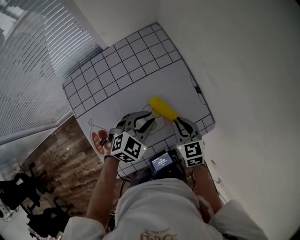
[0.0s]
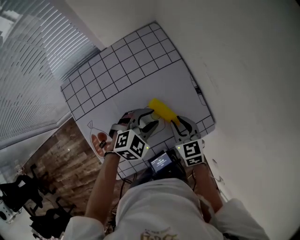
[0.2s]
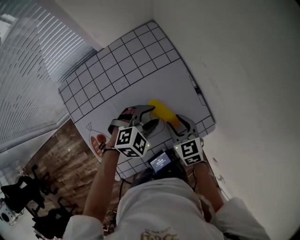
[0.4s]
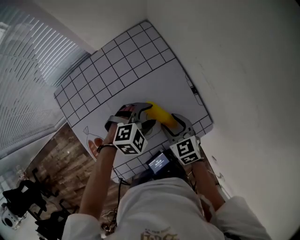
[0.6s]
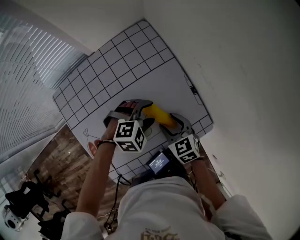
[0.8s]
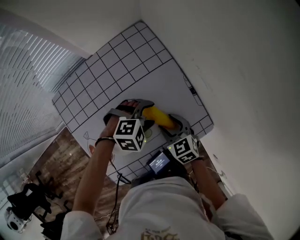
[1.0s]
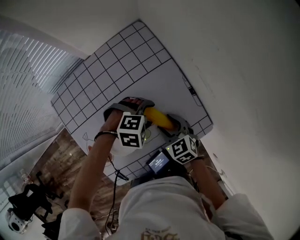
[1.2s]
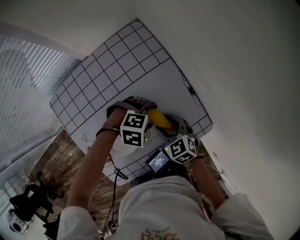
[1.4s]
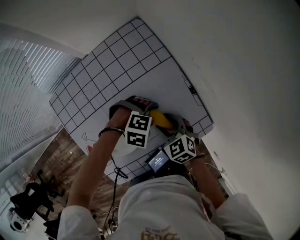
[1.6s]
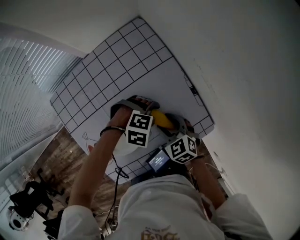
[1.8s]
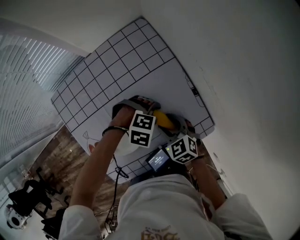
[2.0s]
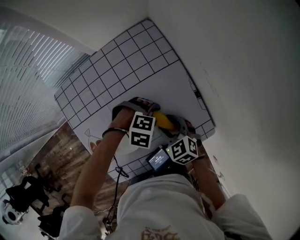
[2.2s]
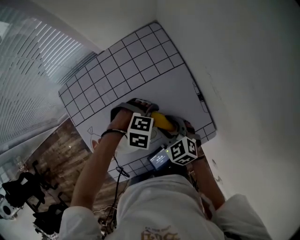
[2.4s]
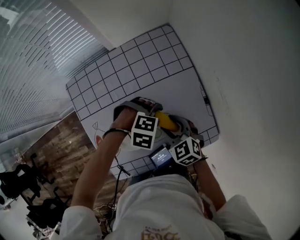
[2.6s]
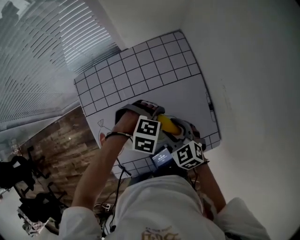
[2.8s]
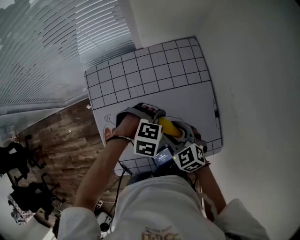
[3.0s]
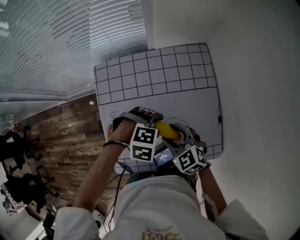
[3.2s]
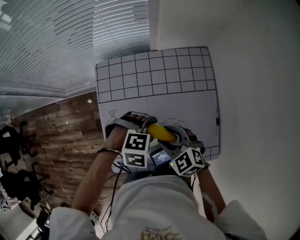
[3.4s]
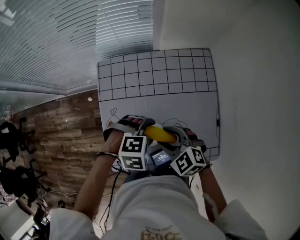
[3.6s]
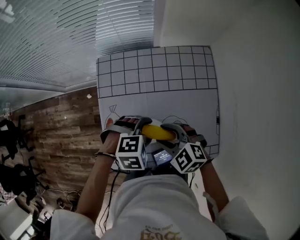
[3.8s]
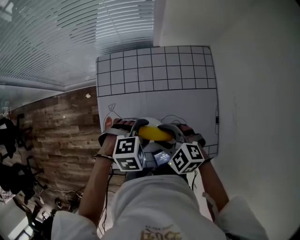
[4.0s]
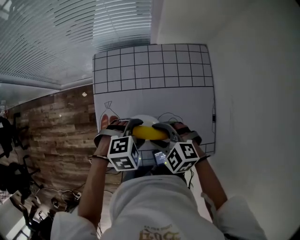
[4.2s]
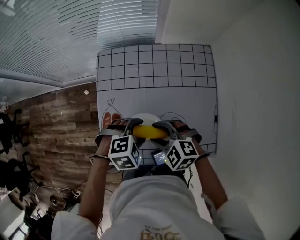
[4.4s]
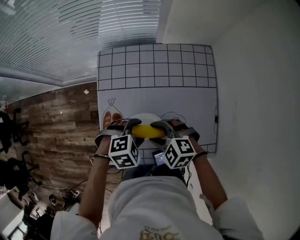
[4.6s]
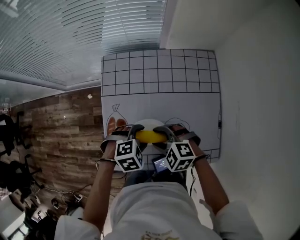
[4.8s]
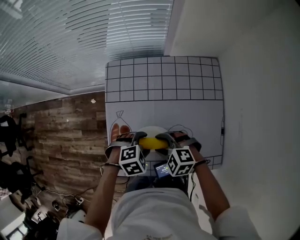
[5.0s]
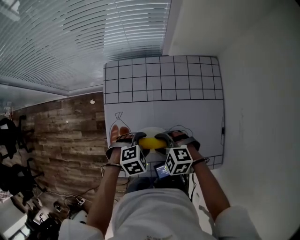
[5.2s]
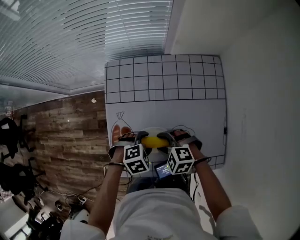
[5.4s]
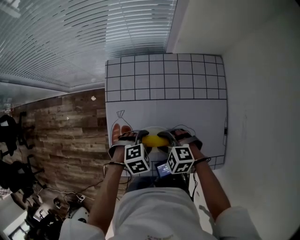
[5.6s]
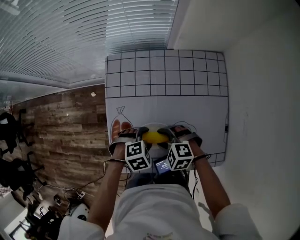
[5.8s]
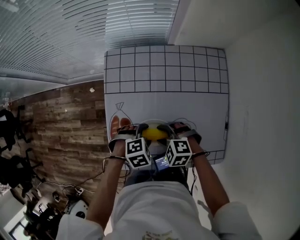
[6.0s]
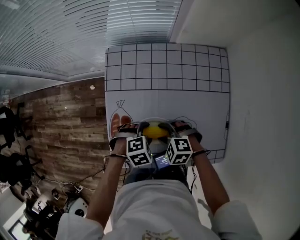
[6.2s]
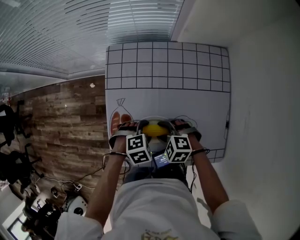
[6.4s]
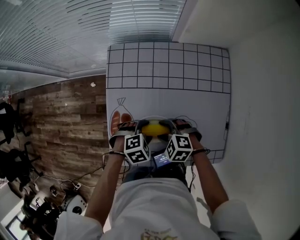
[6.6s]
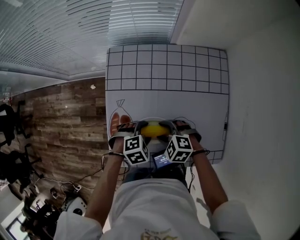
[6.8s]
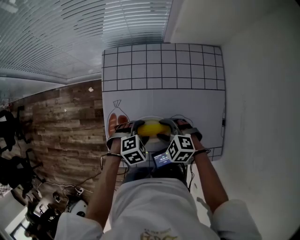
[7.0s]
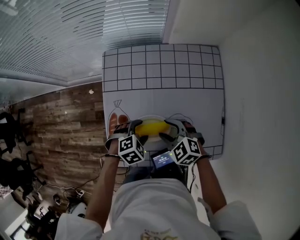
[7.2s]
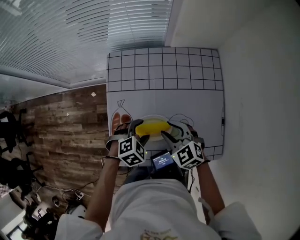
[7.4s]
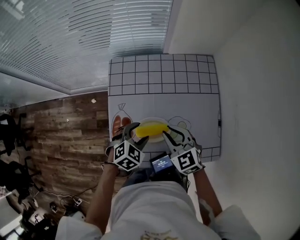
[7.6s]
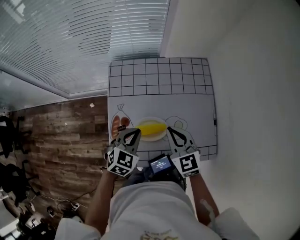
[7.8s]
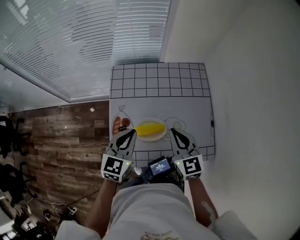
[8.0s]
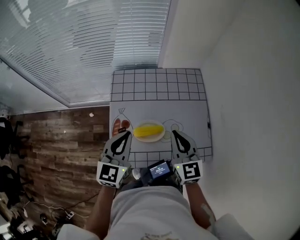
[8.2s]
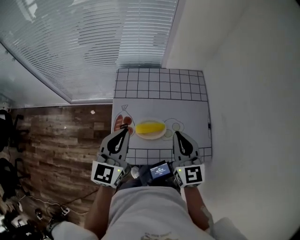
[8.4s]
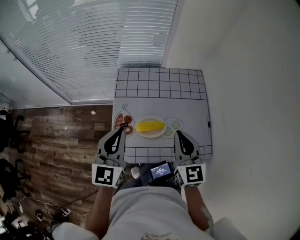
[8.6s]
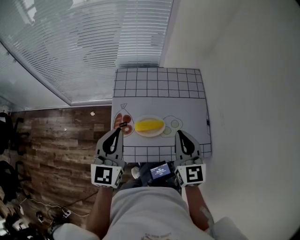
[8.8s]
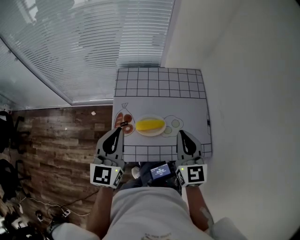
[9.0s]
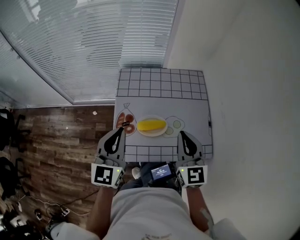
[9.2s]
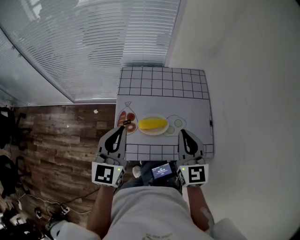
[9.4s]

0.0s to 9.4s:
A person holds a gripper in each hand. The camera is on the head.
0.0s to 1.6s: The grippers both shift downward by some 5 cm. The right gripper swivels roughly 20 degrees, and opens its fingers. Meanwhile the left gripper turns by roughly 60 degrees, and opens up.
1.6s to 3.2s: The left gripper changes place by approximately 15 cm, and changes its angle by some 30 degrees, while the right gripper shifts by some 15 cm, and swivels roughly 30 degrees.
3.2s to 4.8s: The left gripper shifts by approximately 10 cm, and rotates approximately 30 degrees. Meanwhile the right gripper moves approximately 10 cm, and swivels about 40 degrees.
4.8s to 6.2s: Both grippers move downward, approximately 5 cm.
6.2s to 7.8s: Both grippers travel together upward, approximately 15 cm. The right gripper angles its fingers upward, by approximately 40 degrees, and closes, while the left gripper tilts its fingers some 30 degrees upward, and closes.
7.8s to 9.4s: The right gripper heads upward and backward, covering about 15 cm, and swivels some 20 degrees. Meanwhile the left gripper is displaced upward and to the left by some 20 cm, and points its fingers about 30 degrees further upward.

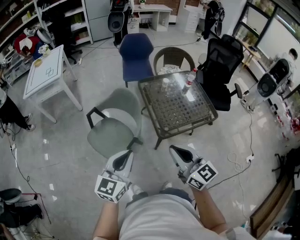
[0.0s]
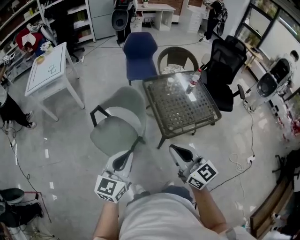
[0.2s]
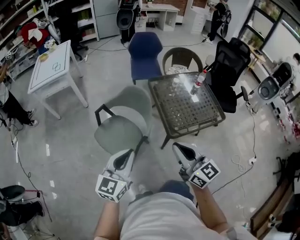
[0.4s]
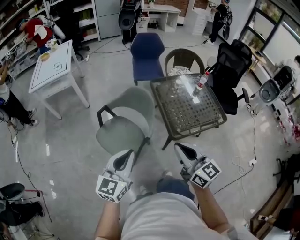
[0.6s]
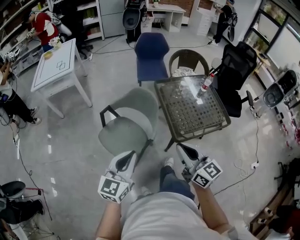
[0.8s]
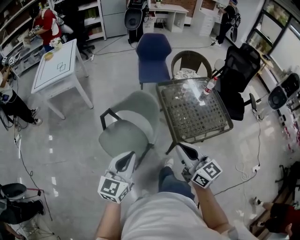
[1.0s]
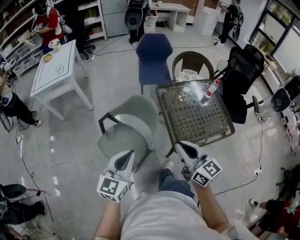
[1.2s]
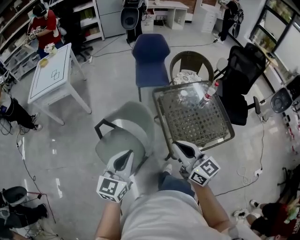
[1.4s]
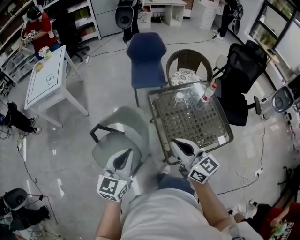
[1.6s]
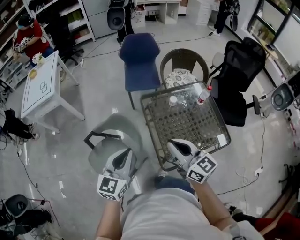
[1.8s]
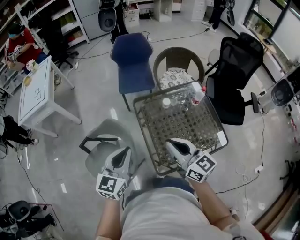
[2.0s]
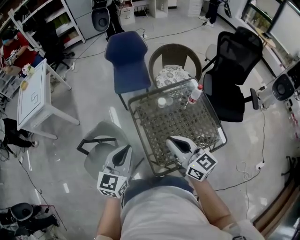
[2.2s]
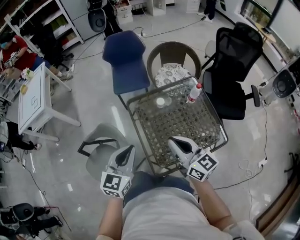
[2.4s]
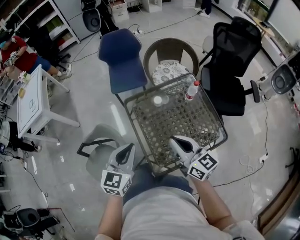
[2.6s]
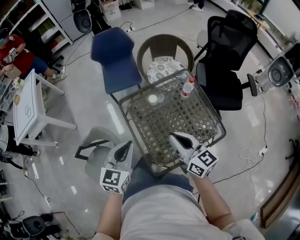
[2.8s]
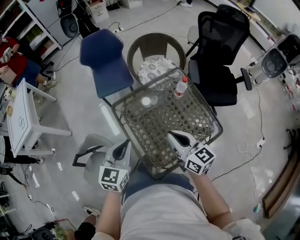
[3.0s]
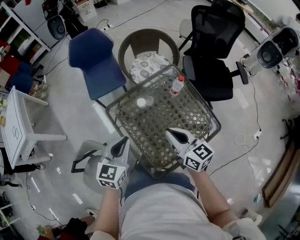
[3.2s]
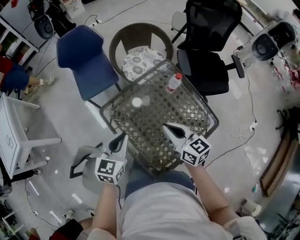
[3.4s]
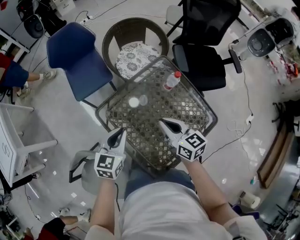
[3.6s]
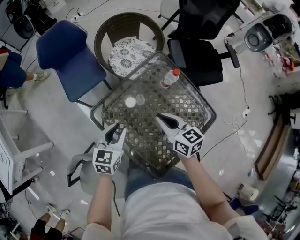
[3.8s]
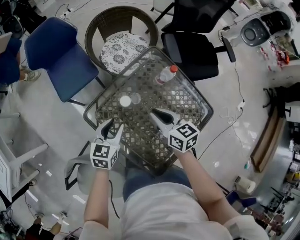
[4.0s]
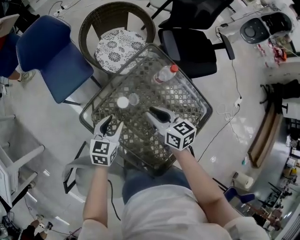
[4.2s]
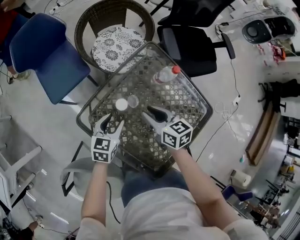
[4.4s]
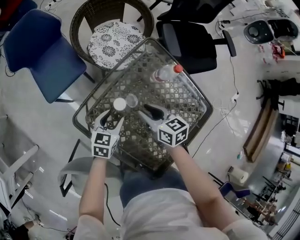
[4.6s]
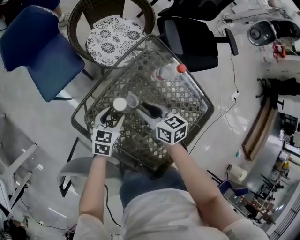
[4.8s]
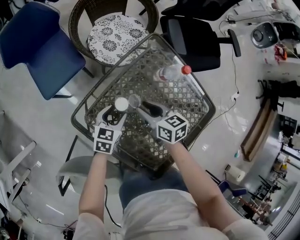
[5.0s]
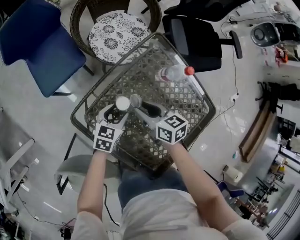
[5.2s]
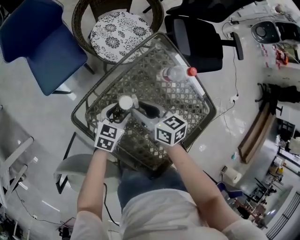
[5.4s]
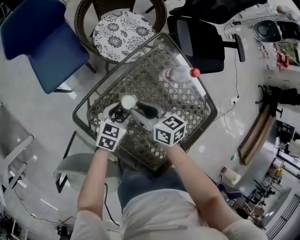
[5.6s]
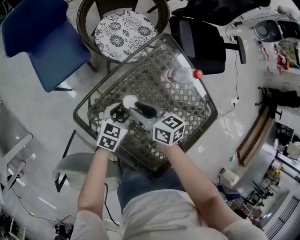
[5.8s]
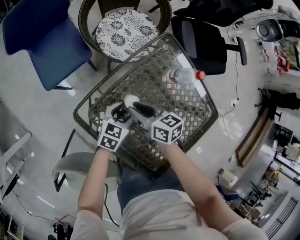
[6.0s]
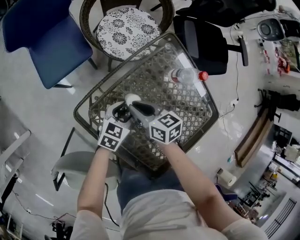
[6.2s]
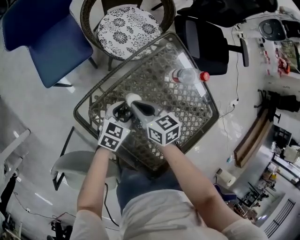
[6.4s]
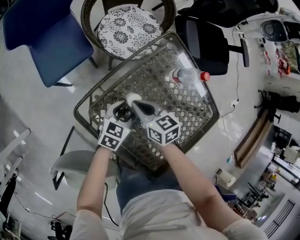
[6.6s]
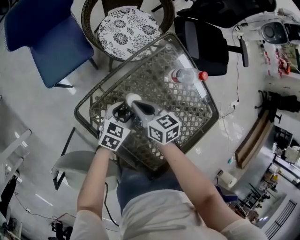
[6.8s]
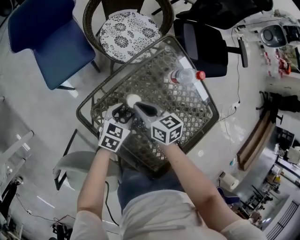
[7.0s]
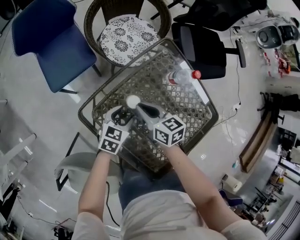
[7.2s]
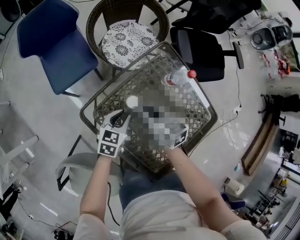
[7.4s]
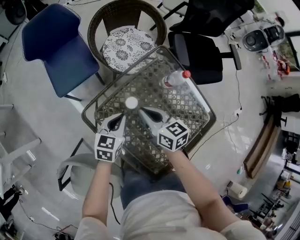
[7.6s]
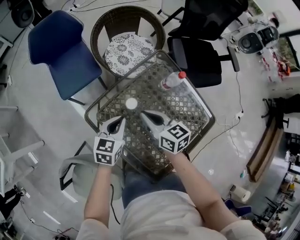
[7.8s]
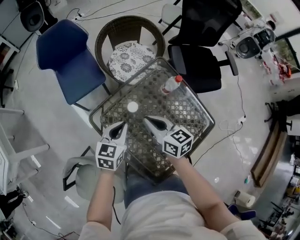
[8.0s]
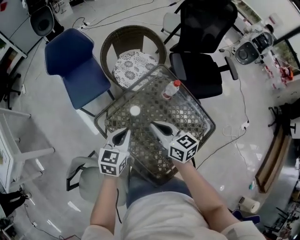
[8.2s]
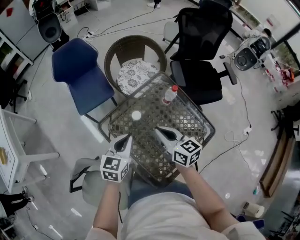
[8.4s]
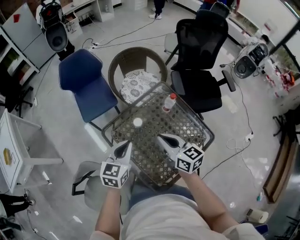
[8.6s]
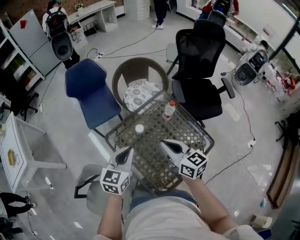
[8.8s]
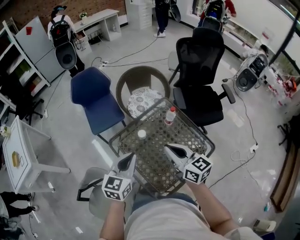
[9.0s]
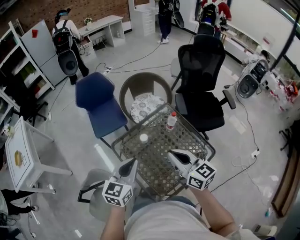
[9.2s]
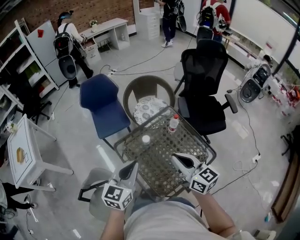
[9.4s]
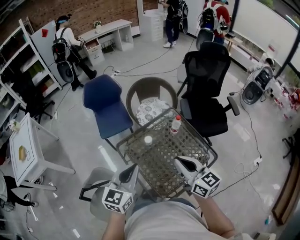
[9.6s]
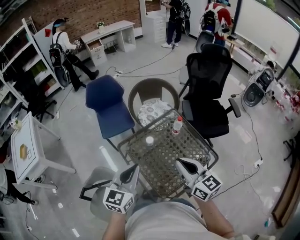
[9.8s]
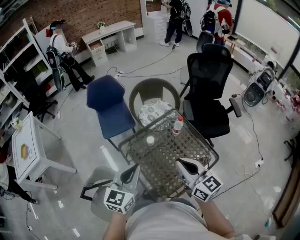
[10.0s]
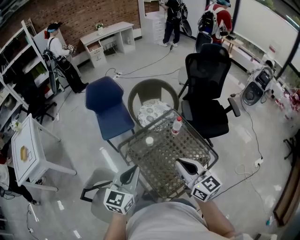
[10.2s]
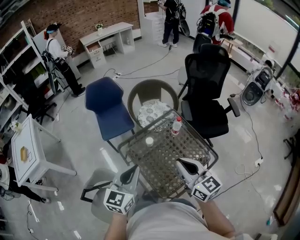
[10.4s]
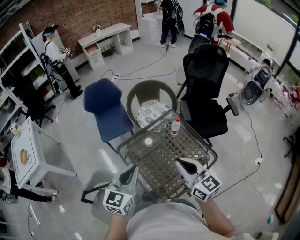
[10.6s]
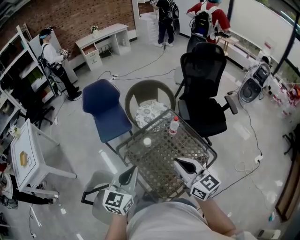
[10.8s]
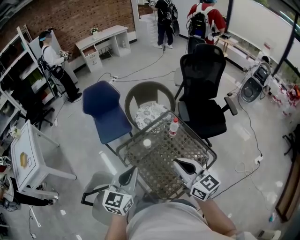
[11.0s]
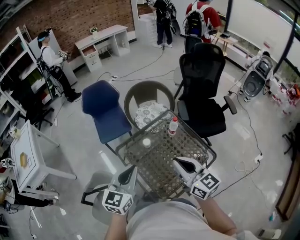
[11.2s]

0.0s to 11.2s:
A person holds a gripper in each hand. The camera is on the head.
0.0s to 1.6s: Both grippers move forward, about 25 cm.
1.6s to 3.2s: The left gripper shifts approximately 35 cm forward, to the right and downward, and rotates some 20 degrees, while the right gripper is displaced to the right, forward and downward by approximately 35 cm, and turns by approximately 20 degrees.
3.2s to 4.8s: The grippers both shift downward and forward by approximately 30 cm. The right gripper swivels roughly 30 degrees, and opens its fingers, while the left gripper rotates about 30 degrees, and opens up.
4.8s to 6.4s: The right gripper shifts approximately 10 cm to the left, and closes up.
6.4s to 8.0s: The right gripper heads upward and backward, covering approximately 20 cm. The left gripper travels upward by some 20 cm, and closes its fingers.
8.0s to 9.6s: Both grippers move upward and backward, roughly 30 cm. The left gripper swivels about 20 degrees. The right gripper rotates roughly 20 degrees.
9.6s to 11.2s: The grippers move only a little.

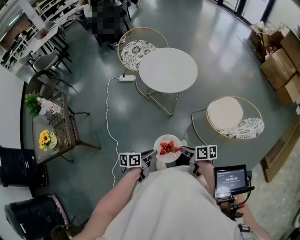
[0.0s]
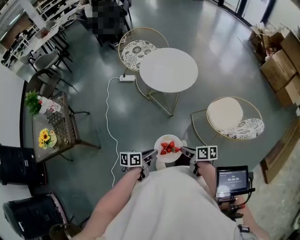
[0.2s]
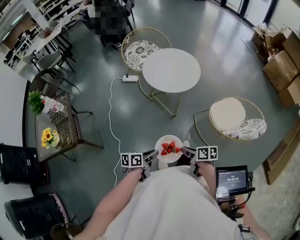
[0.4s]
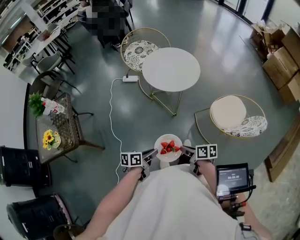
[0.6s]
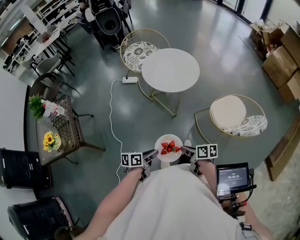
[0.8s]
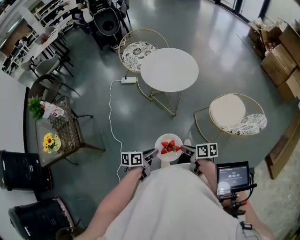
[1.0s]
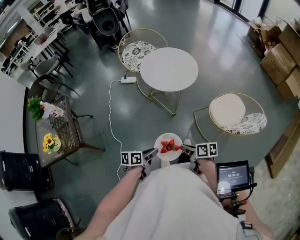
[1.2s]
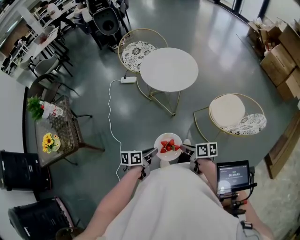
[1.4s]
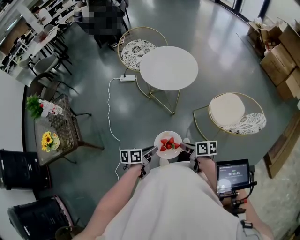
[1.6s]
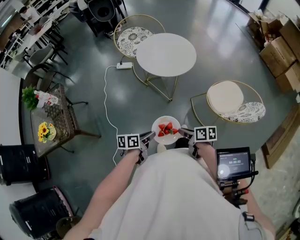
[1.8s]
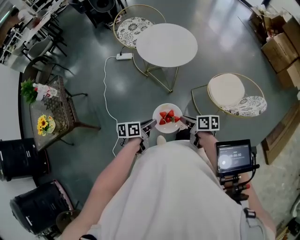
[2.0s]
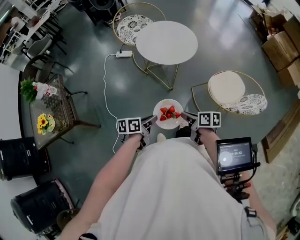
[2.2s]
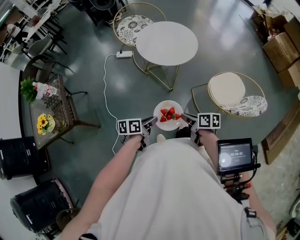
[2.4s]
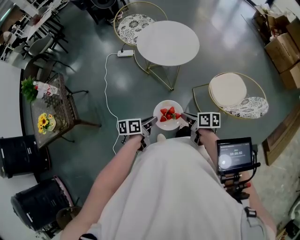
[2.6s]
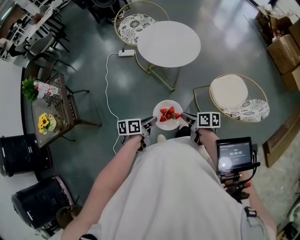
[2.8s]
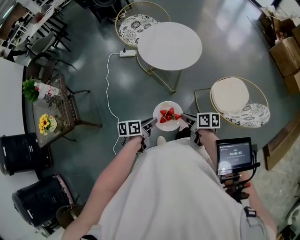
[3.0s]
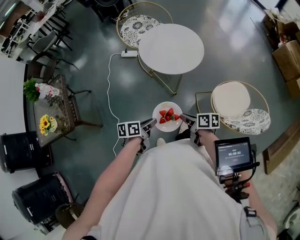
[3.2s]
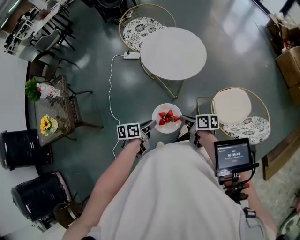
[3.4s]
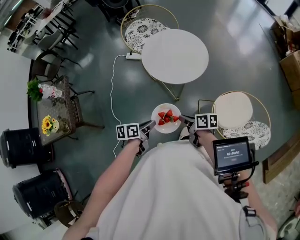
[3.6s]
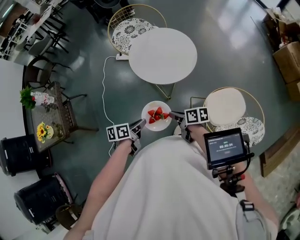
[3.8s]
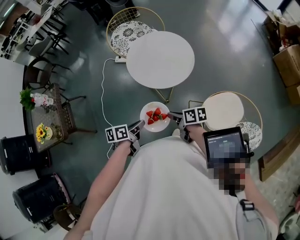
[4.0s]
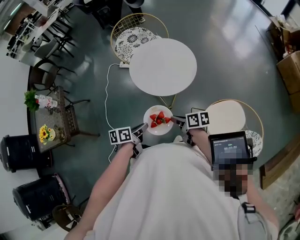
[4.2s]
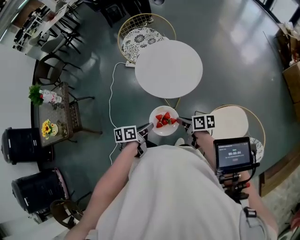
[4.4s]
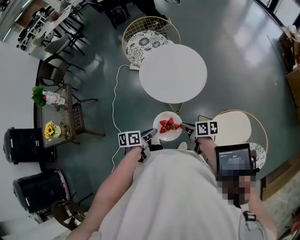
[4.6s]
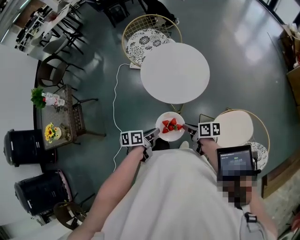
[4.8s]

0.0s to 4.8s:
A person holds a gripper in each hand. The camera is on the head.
0.0s to 1.6s: The grippers move only a little.
1.6s to 3.2s: The grippers both shift forward by approximately 10 cm.
3.2s to 4.8s: The grippers both shift forward and to the right by some 10 cm.
